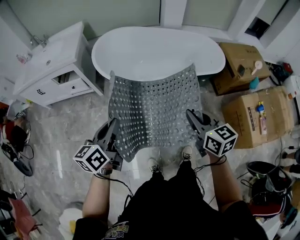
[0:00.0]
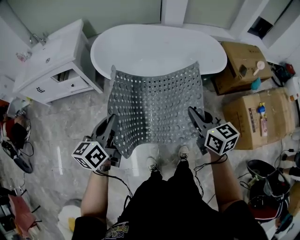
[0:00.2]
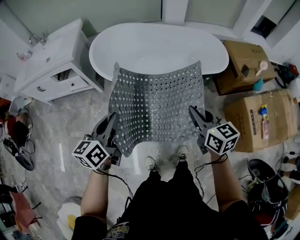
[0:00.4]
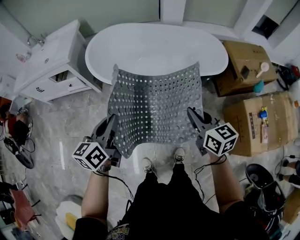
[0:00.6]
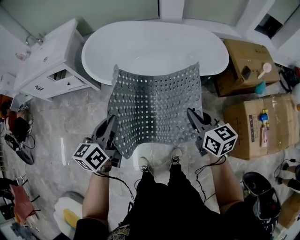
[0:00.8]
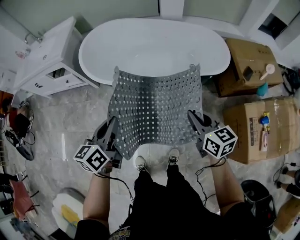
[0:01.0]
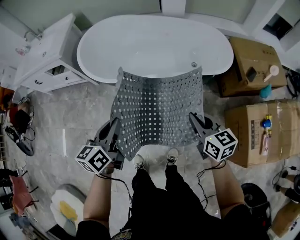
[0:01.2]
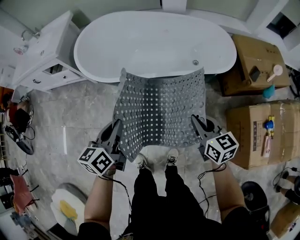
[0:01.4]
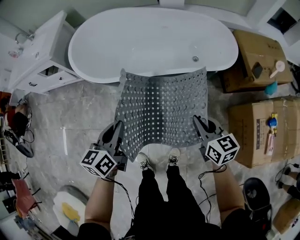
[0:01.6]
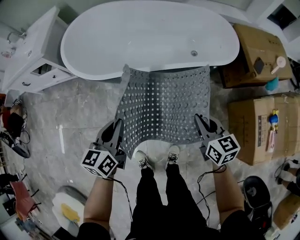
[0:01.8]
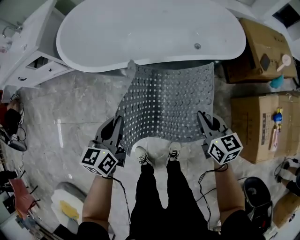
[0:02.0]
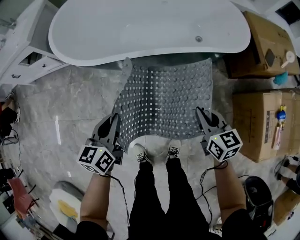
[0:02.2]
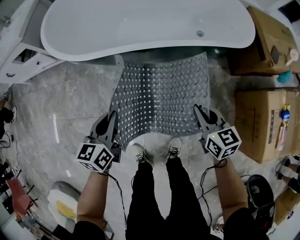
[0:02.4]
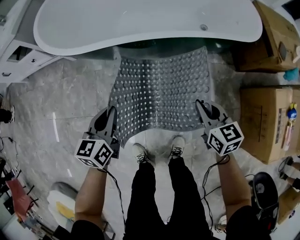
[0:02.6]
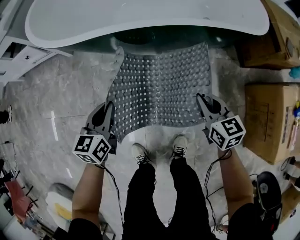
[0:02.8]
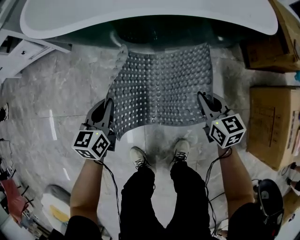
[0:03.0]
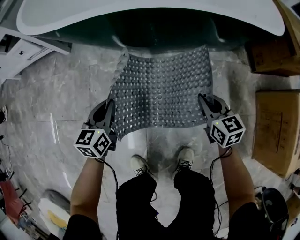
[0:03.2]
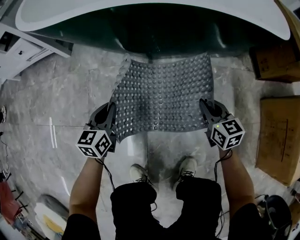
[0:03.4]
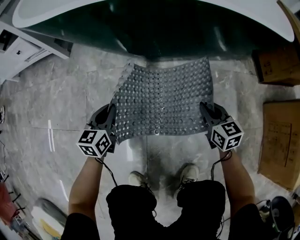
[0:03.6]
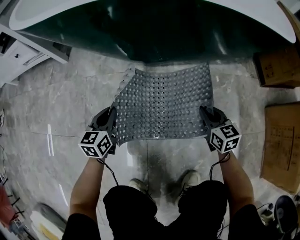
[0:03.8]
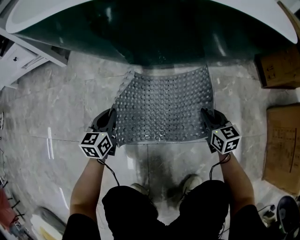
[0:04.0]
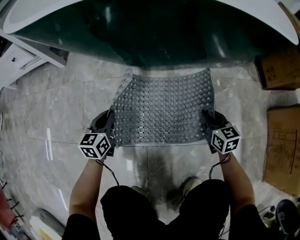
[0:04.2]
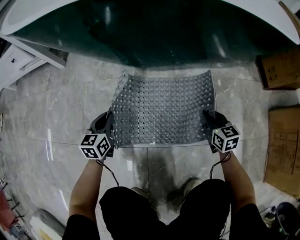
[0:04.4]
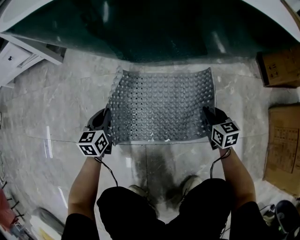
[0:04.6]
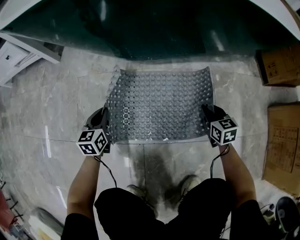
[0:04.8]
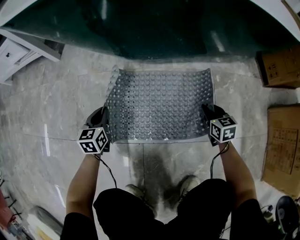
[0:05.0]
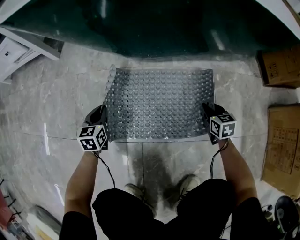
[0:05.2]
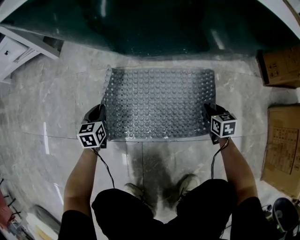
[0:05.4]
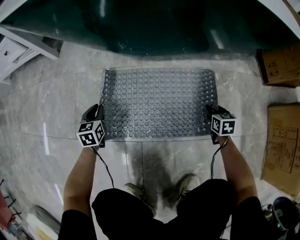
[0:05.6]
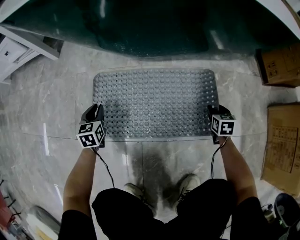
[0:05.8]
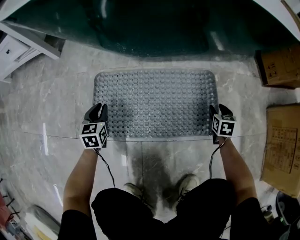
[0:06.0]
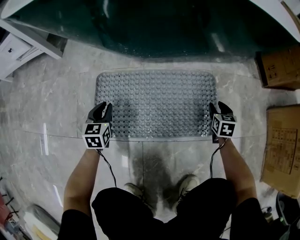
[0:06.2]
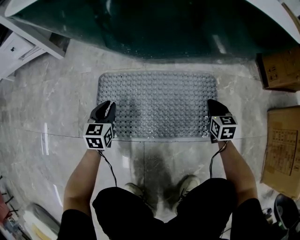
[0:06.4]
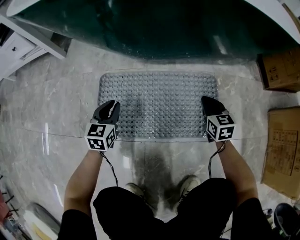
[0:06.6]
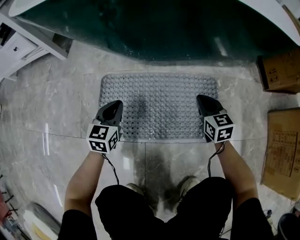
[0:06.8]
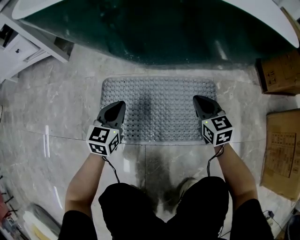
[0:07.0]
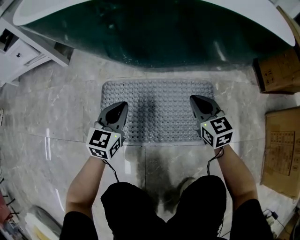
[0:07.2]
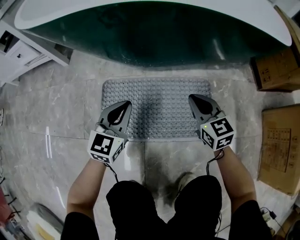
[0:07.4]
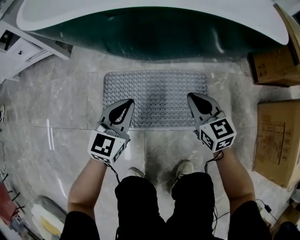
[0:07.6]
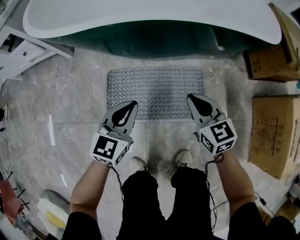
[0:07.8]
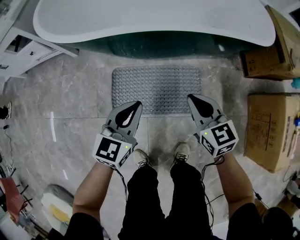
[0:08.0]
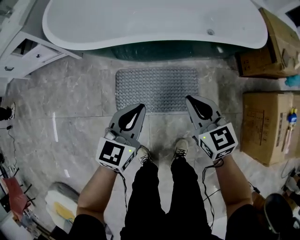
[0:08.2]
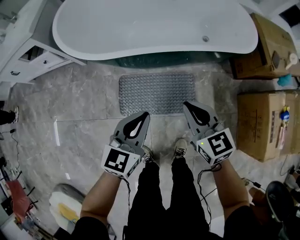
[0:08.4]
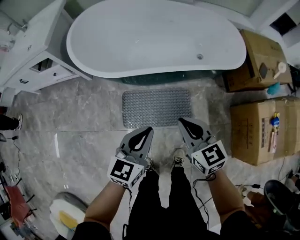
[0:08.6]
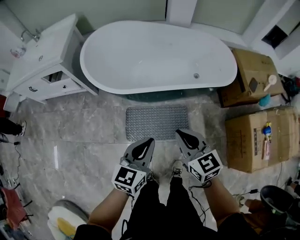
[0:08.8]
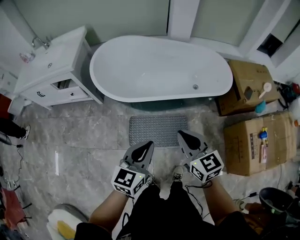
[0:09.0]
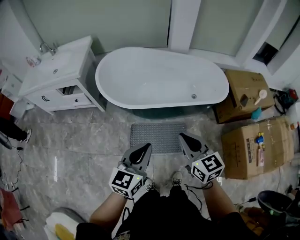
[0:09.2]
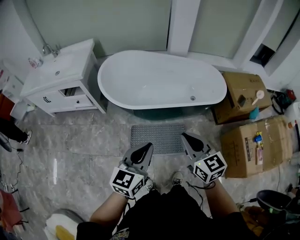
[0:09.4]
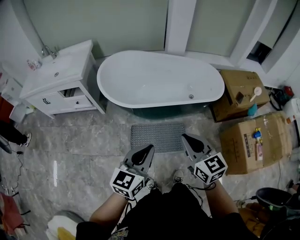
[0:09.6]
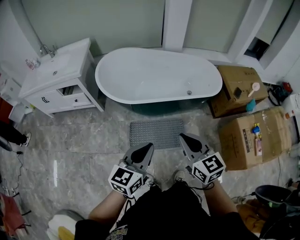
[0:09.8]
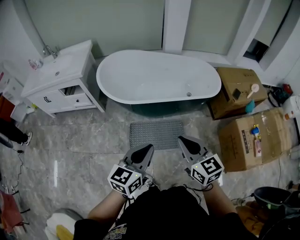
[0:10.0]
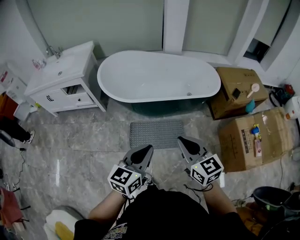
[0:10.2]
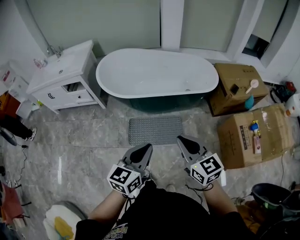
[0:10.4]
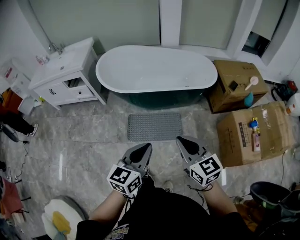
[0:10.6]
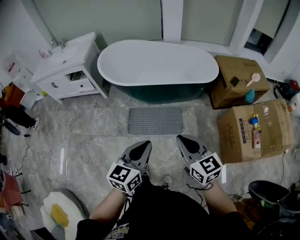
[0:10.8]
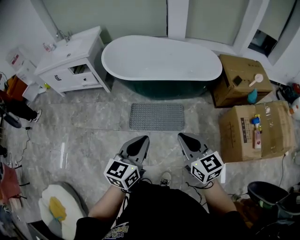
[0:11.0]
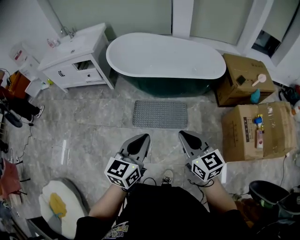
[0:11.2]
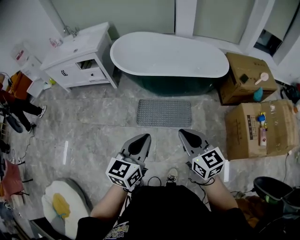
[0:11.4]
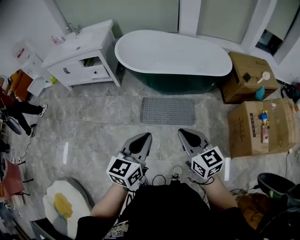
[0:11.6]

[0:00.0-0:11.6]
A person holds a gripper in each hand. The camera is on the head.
0:00.0 to 0:01.4: Both grippers move to the right and downward, approximately 25 cm.
0:01.4 to 0:02.8: The two grippers go some 40 cm downward.
0:02.8 to 0:04.4: Both grippers travel together downward, roughly 35 cm.
0:04.4 to 0:05.8: The left gripper goes approximately 5 cm downward; the right gripper heads downward and to the right, covering about 15 cm, swivels approximately 20 degrees, and opens its fingers.
0:05.8 to 0:07.2: The right gripper heads upward and to the left, covering approximately 25 cm, turns by some 40 degrees, and closes up. Meanwhile the left gripper moves upward and to the right, some 20 cm, and rotates roughly 30 degrees.
0:07.2 to 0:08.8: Both grippers travel together upward, about 60 cm.
0:08.8 to 0:10.2: The grippers both shift backward and upward by roughly 25 cm.
0:10.2 to 0:11.6: Both grippers travel together backward, some 20 cm.

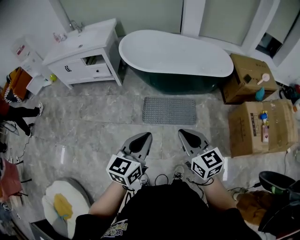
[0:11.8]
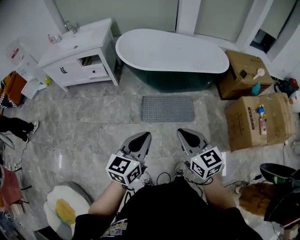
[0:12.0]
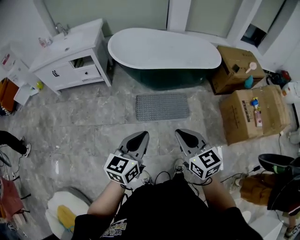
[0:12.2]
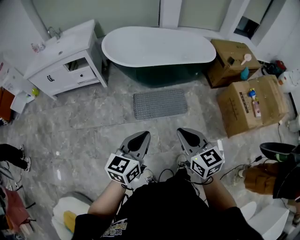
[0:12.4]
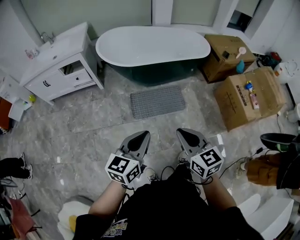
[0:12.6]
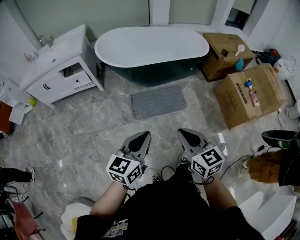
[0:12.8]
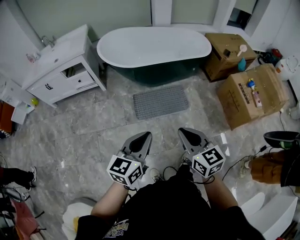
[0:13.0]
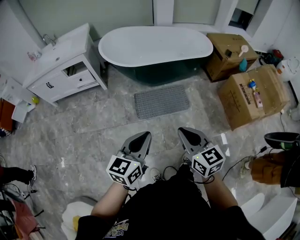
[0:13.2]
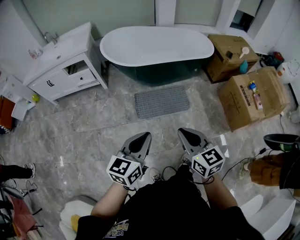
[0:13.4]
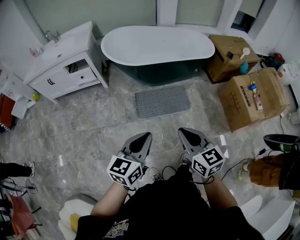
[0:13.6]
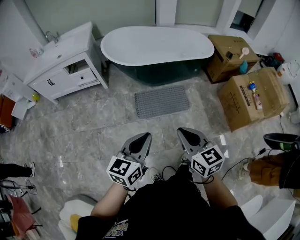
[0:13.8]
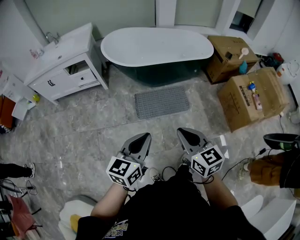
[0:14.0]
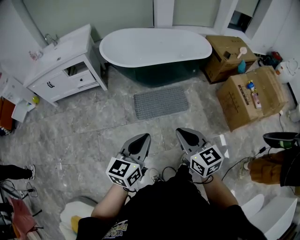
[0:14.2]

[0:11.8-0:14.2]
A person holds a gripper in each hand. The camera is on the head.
0:11.8 to 0:13.0: The right gripper goes roughly 10 cm backward and to the left. Meanwhile the left gripper travels to the left by some 5 cm.
0:13.0 to 0:14.2: The grippers make only small movements.

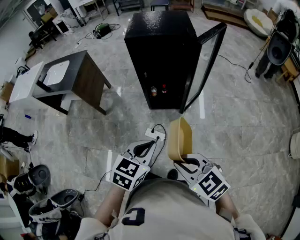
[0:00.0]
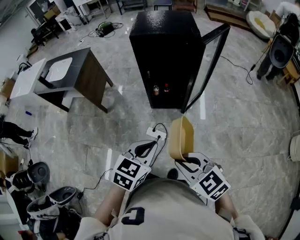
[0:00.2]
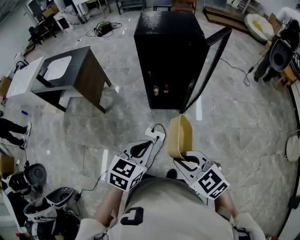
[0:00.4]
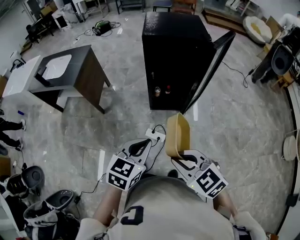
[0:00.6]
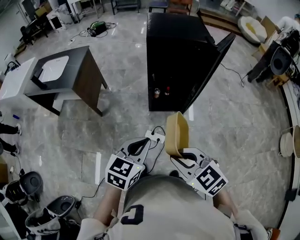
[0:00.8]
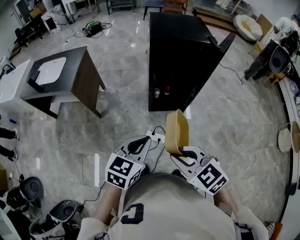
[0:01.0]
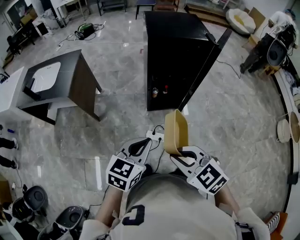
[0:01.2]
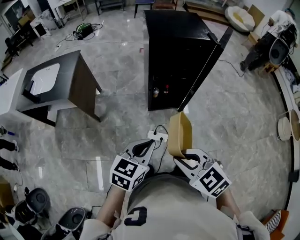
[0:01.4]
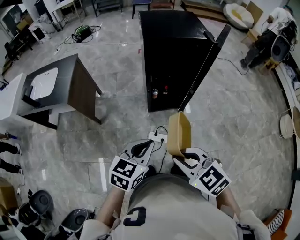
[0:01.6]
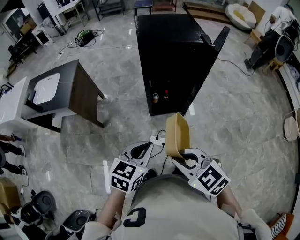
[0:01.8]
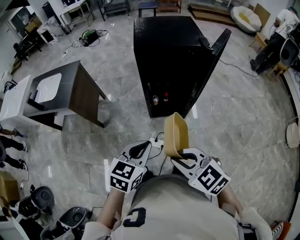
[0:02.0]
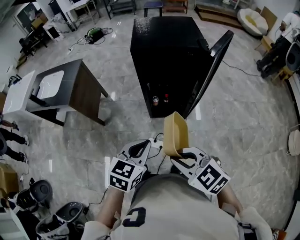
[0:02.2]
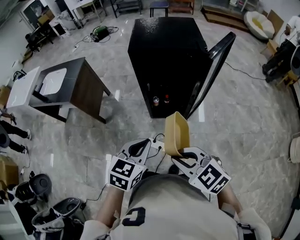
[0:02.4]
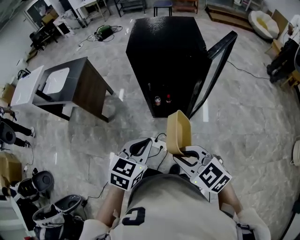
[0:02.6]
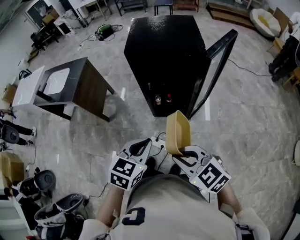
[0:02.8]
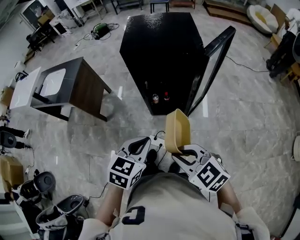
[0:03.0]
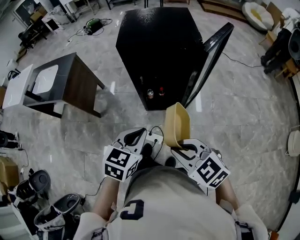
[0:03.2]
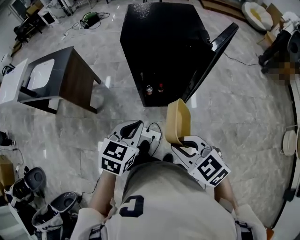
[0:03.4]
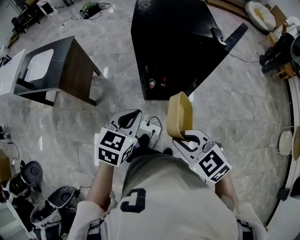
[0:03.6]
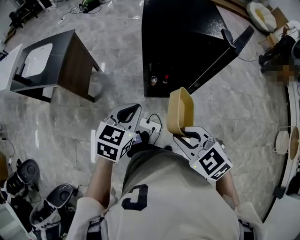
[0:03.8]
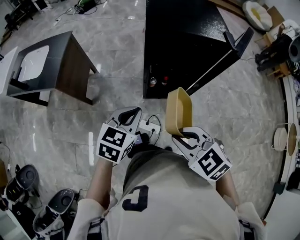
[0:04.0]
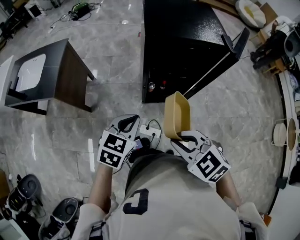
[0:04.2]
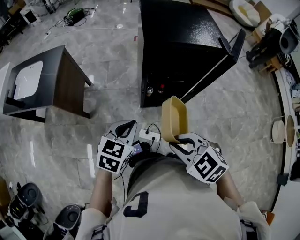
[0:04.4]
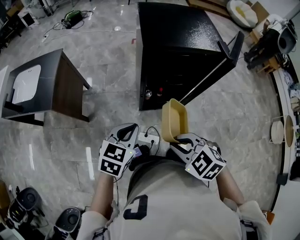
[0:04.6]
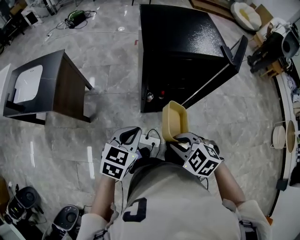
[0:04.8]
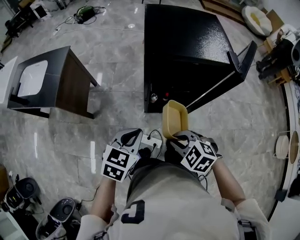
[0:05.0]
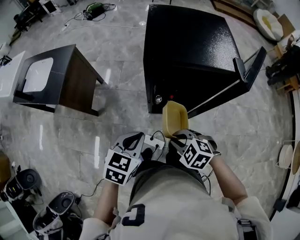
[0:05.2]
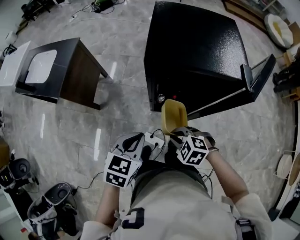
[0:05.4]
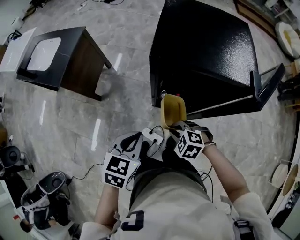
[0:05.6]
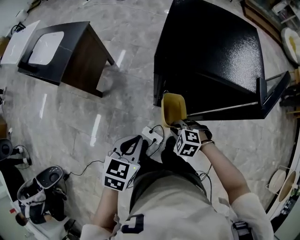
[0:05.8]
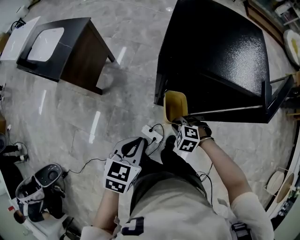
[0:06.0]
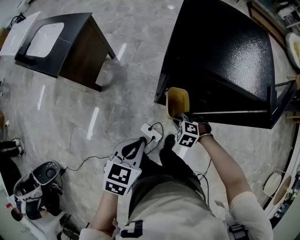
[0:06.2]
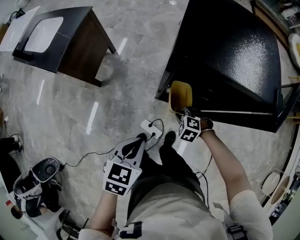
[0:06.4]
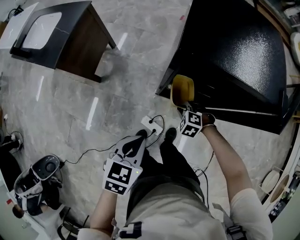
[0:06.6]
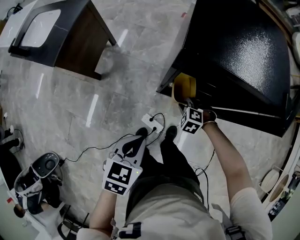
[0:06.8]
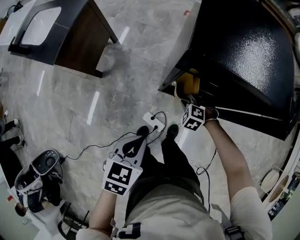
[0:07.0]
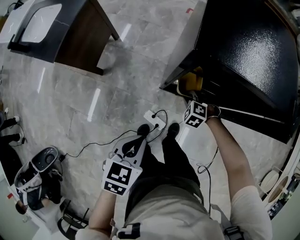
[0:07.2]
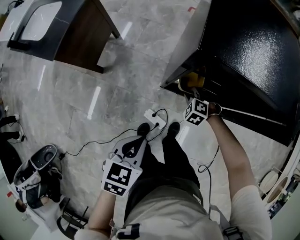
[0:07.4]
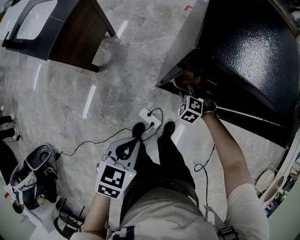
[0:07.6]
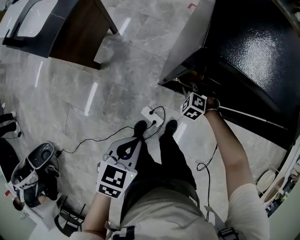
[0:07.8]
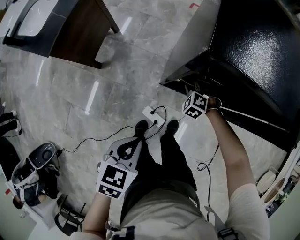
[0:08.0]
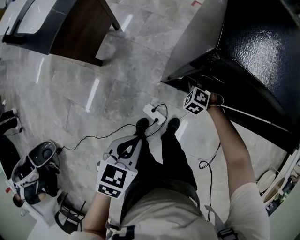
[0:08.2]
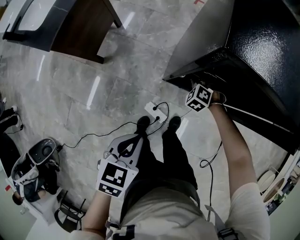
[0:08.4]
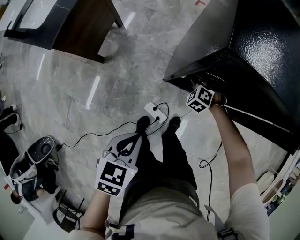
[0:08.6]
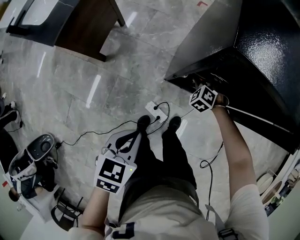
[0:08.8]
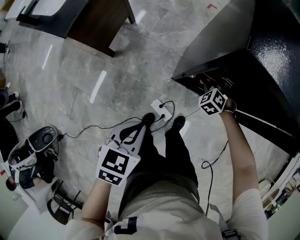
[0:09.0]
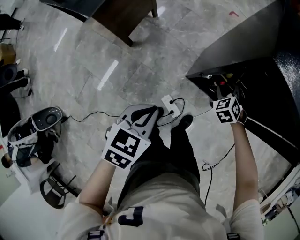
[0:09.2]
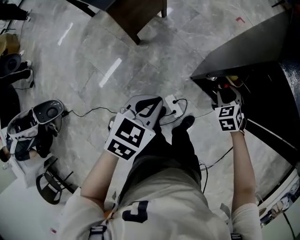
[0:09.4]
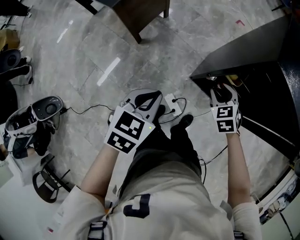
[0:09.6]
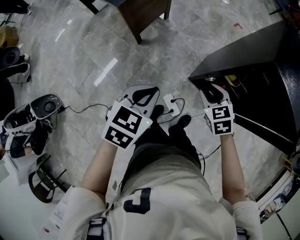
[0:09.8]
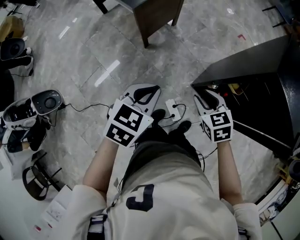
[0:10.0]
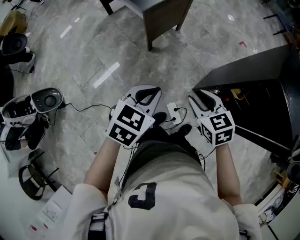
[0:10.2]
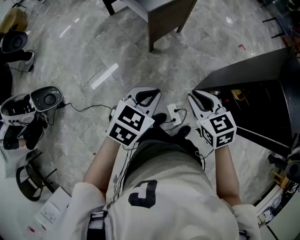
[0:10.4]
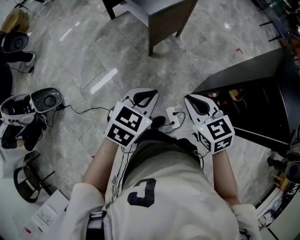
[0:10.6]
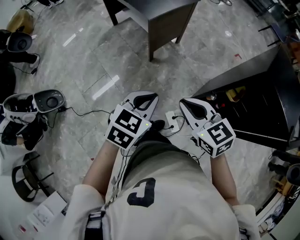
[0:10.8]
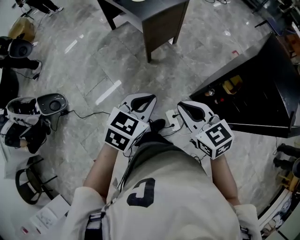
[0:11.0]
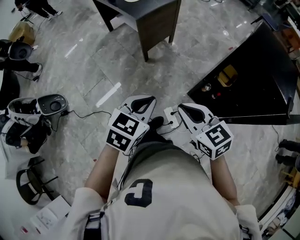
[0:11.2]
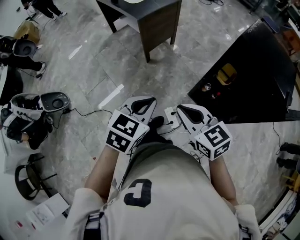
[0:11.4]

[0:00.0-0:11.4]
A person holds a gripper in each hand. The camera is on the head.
0:00.0 to 0:01.4: Both grippers travel together to the left and forward, roughly 25 cm.
0:01.4 to 0:02.8: Both grippers travel together to the right, about 20 cm.
0:02.8 to 0:04.2: The right gripper goes approximately 20 cm to the left and forward. The left gripper travels forward and to the left by roughly 20 cm.
0:04.2 to 0:05.6: The left gripper travels to the right by approximately 5 cm, and changes its angle by about 20 degrees. Meanwhile the right gripper goes approximately 25 cm downward, forward and to the right, and swivels roughly 30 degrees.
0:05.6 to 0:07.2: The right gripper is displaced downward and forward by about 20 cm; the left gripper travels downward by approximately 5 cm.
0:07.2 to 0:08.6: The right gripper moves forward, approximately 10 cm.
0:08.6 to 0:10.0: The right gripper shifts by about 35 cm, and swivels some 40 degrees; the left gripper shifts by some 20 cm.
0:10.0 to 0:11.4: The left gripper goes approximately 20 cm backward, while the right gripper heads backward and upward, covering approximately 25 cm, swivels roughly 30 degrees, and closes.
